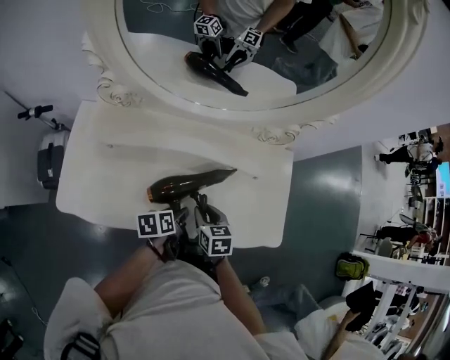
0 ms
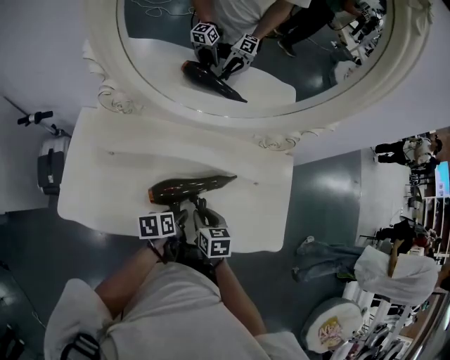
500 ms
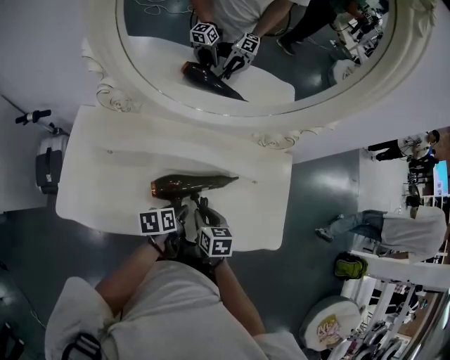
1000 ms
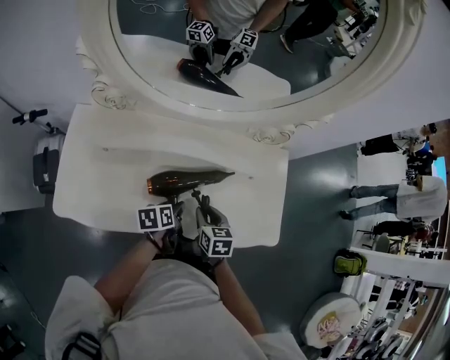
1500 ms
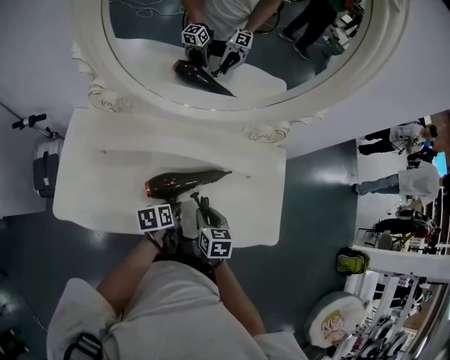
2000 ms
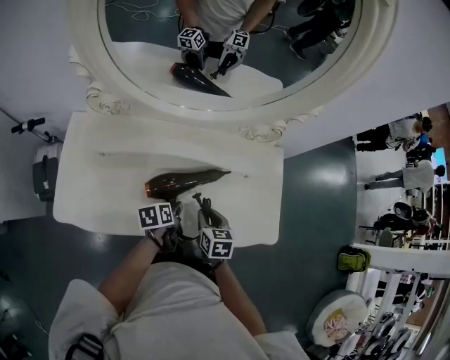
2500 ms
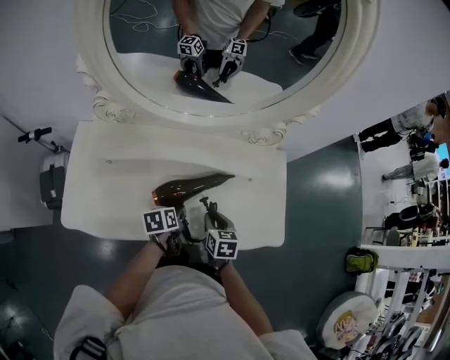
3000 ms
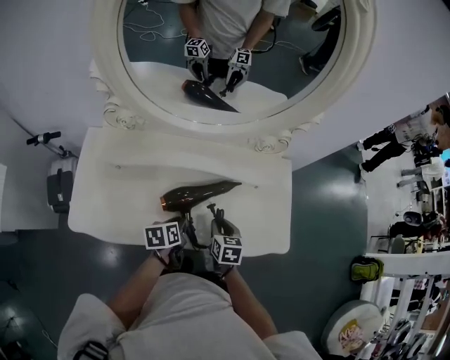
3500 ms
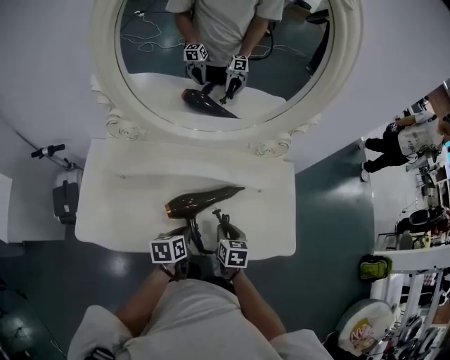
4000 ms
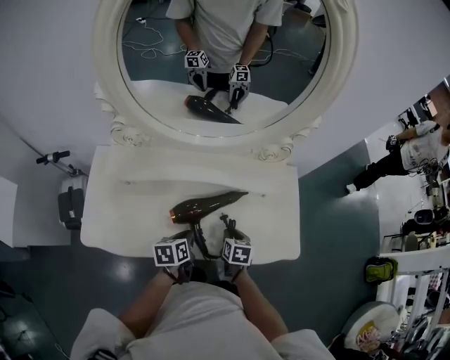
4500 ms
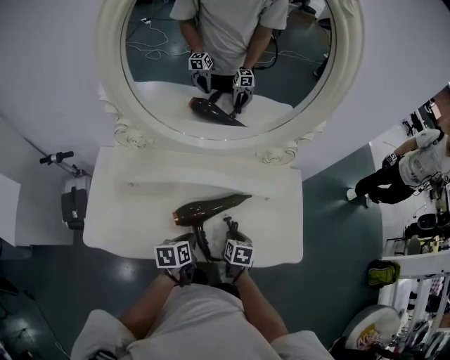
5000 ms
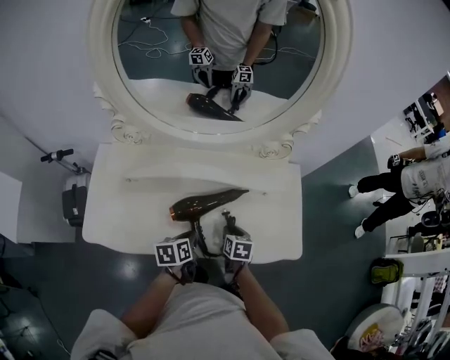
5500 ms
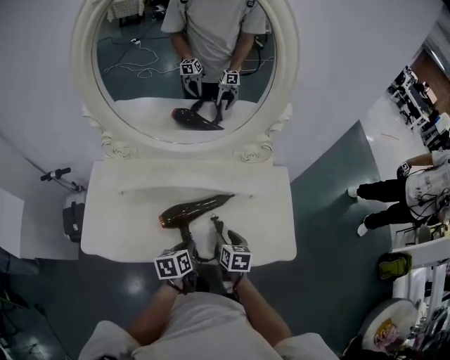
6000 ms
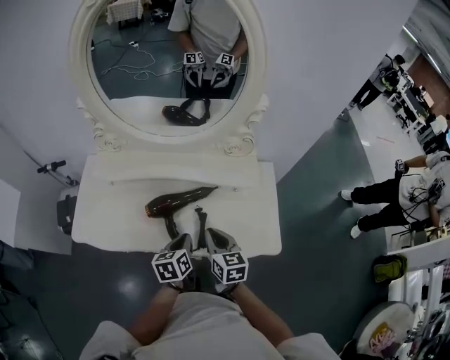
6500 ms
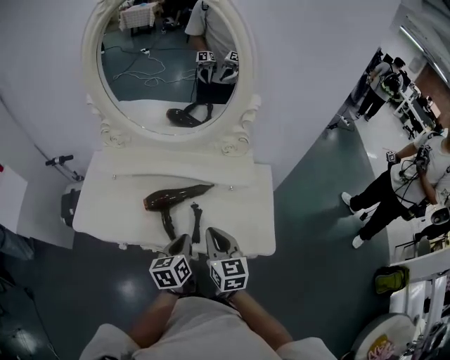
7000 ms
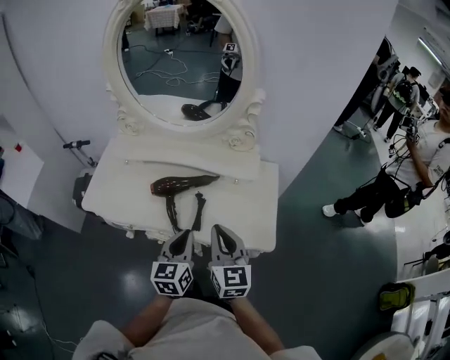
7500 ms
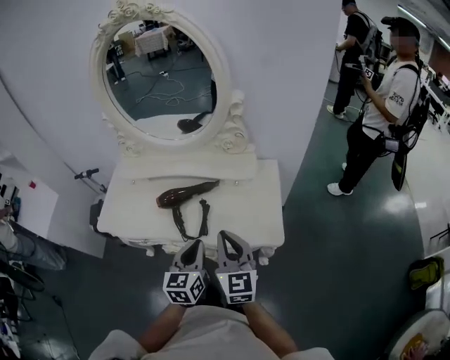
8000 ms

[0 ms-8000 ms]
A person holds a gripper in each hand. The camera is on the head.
0 ms to 2000 ms: The grippers make only small movements.
2000 ms to 4000 ms: The left gripper changes place by approximately 5 cm, and closes up.
4000 ms to 6000 ms: The left gripper changes place by roughly 5 cm.
6000 ms to 8000 ms: The right gripper is displaced upward and backward by some 30 cm, points its fingers approximately 40 degrees further upward, and closes up. The left gripper shifts about 25 cm upward, backward and to the right, and swivels approximately 40 degrees.

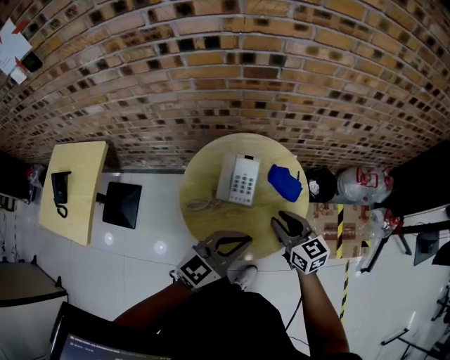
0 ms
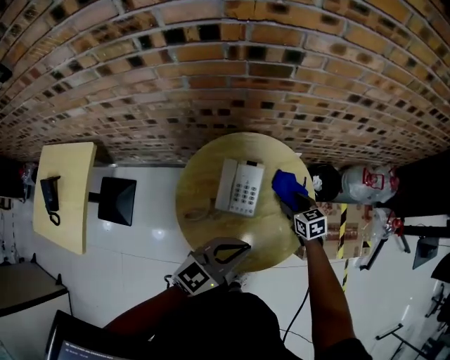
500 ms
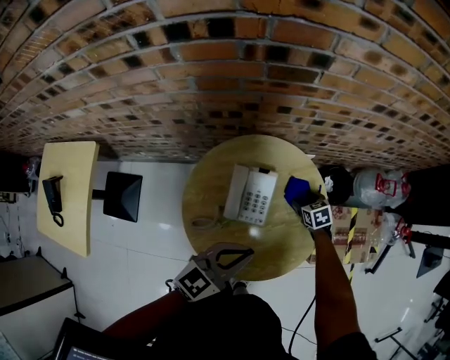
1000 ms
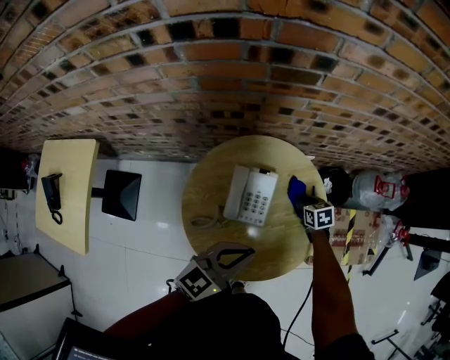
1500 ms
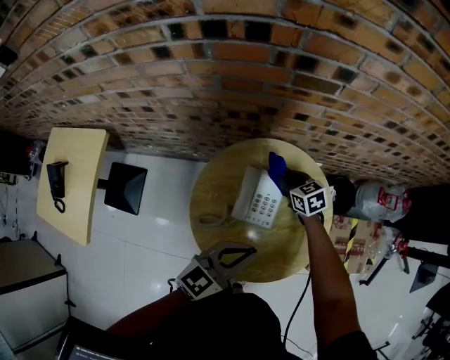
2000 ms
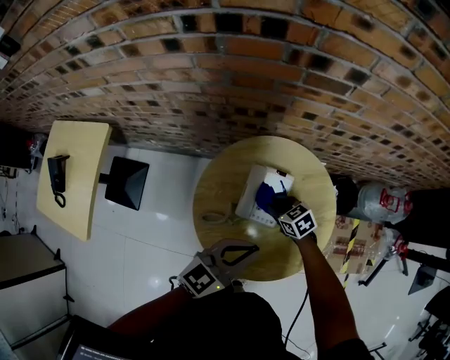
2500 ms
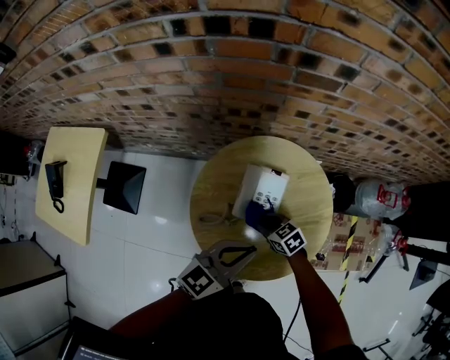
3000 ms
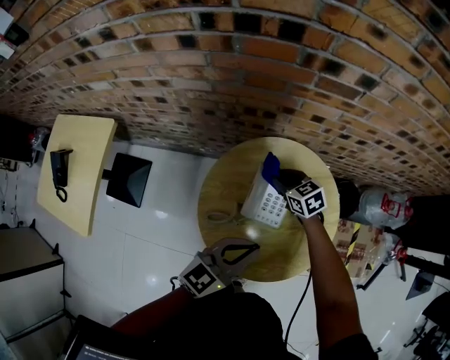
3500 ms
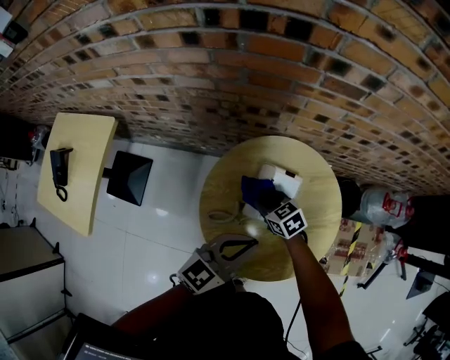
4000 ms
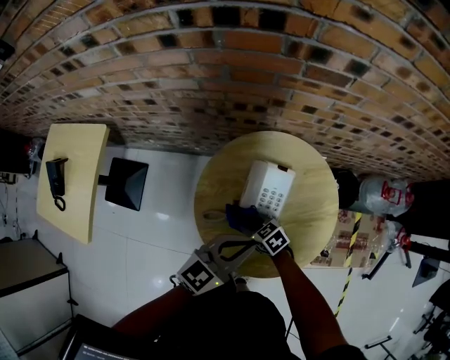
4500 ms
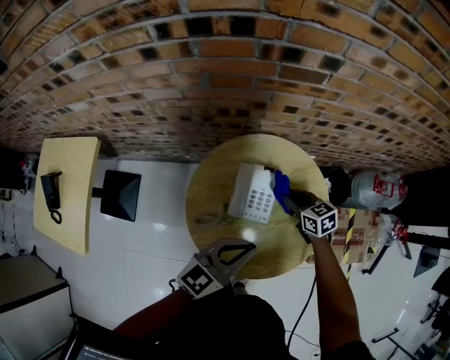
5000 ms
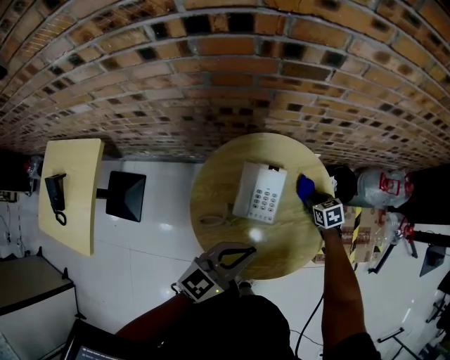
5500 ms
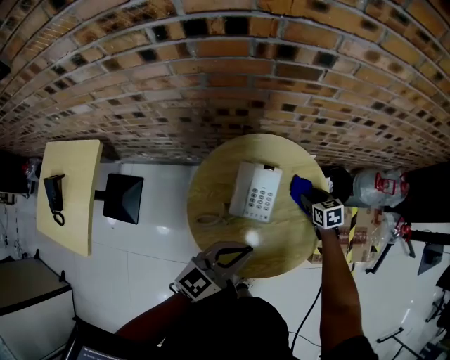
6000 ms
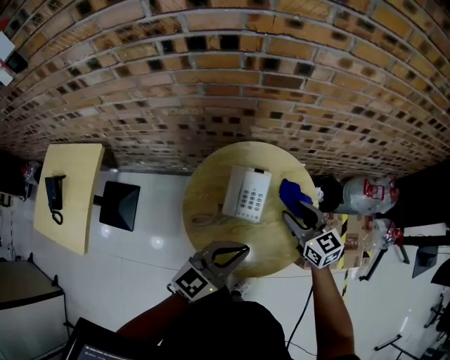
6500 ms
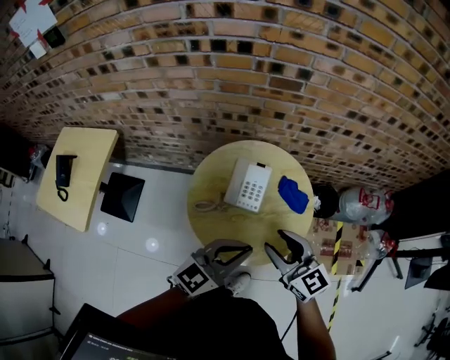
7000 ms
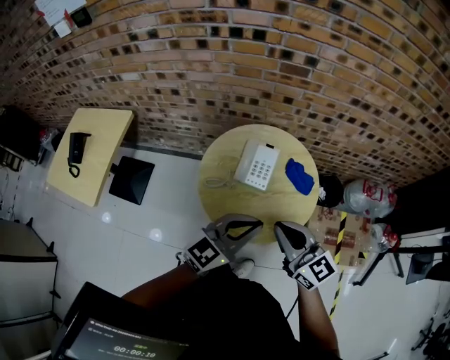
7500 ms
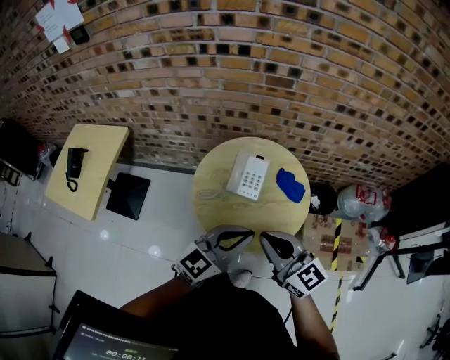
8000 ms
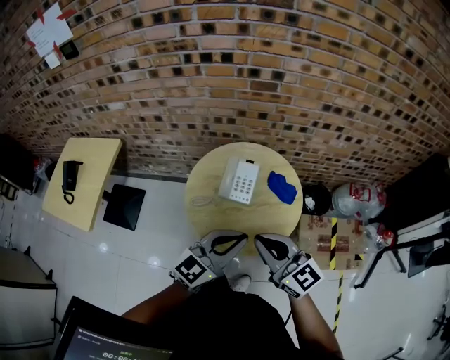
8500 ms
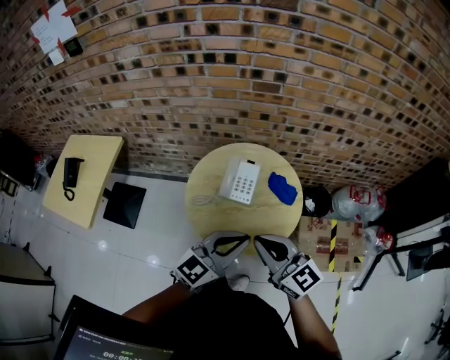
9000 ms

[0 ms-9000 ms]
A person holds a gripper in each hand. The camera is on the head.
0 ms to 2000 ms: The left gripper moves forward, to the left and downward, approximately 15 cm, while the right gripper goes approximately 30 cm forward, downward and to the left, swivels some 20 degrees, and opens and closes again.
2000 ms to 4500 ms: The right gripper swings up and down, about 5 cm each way, with 2 reversals, and swivels some 20 degrees.
4500 ms to 7000 ms: The left gripper changes place by about 15 cm. Meanwhile the right gripper goes up and down, approximately 35 cm each way, reversing 2 times, tips its fingers upward by about 30 degrees, and opens its fingers.
7000 ms to 9000 ms: The right gripper goes approximately 10 cm backward and upward, and closes, while the left gripper shifts about 5 cm backward.

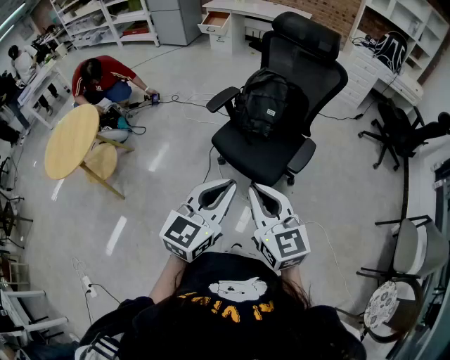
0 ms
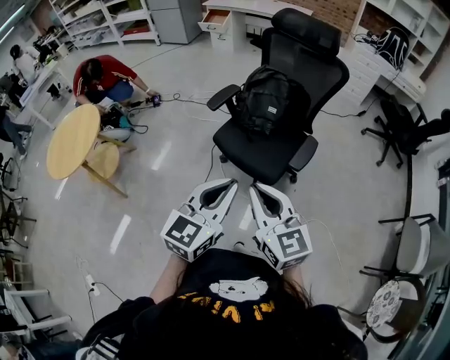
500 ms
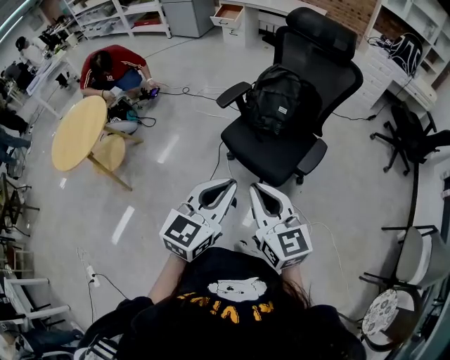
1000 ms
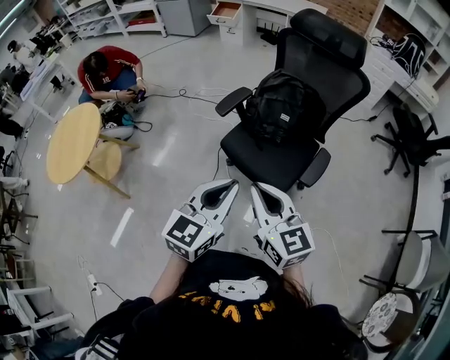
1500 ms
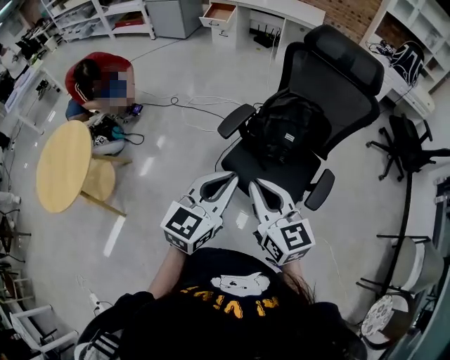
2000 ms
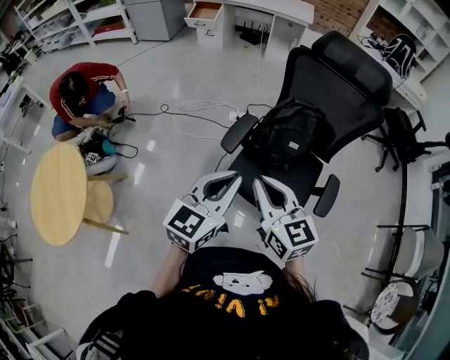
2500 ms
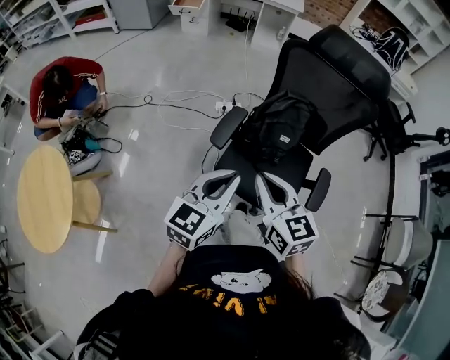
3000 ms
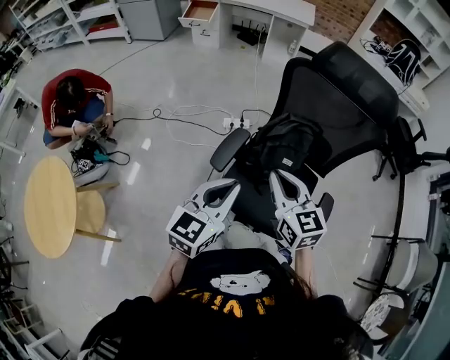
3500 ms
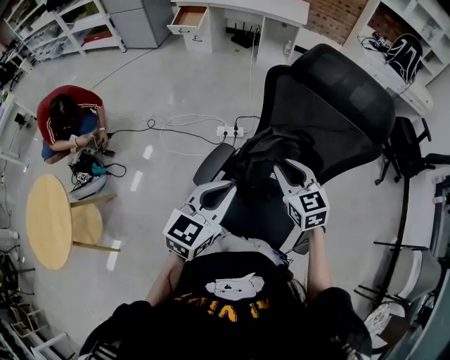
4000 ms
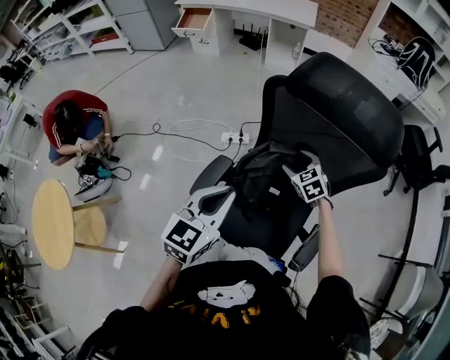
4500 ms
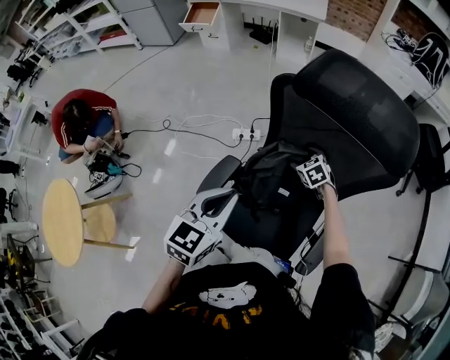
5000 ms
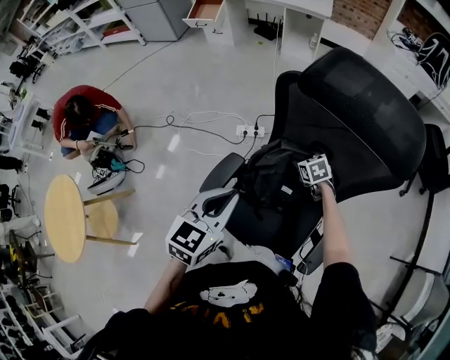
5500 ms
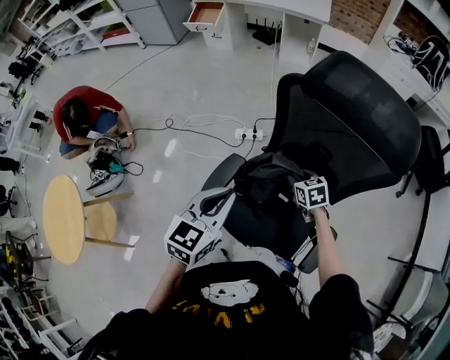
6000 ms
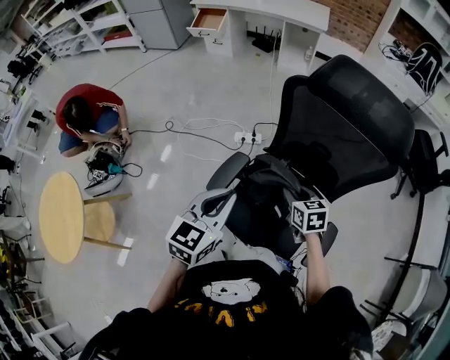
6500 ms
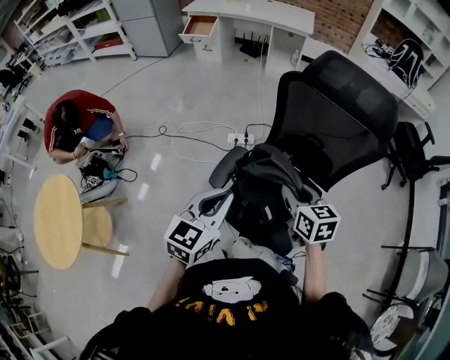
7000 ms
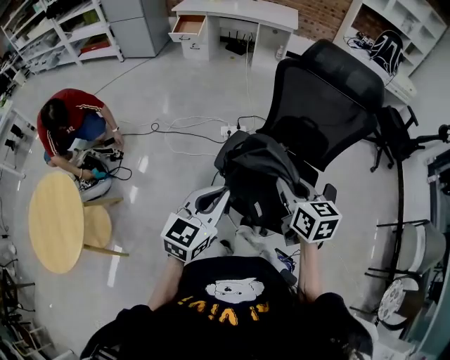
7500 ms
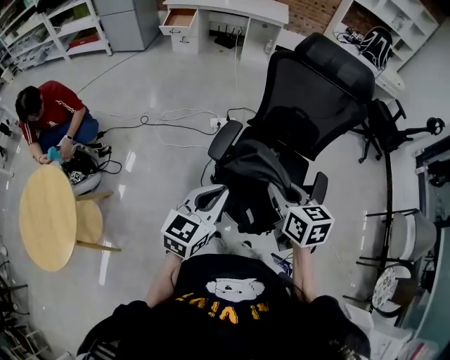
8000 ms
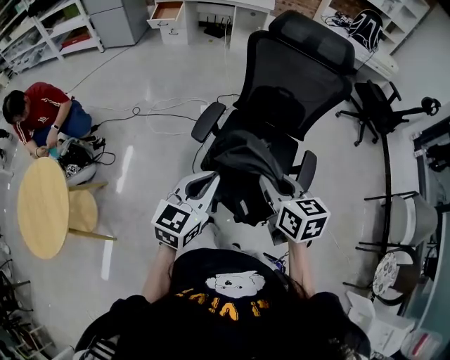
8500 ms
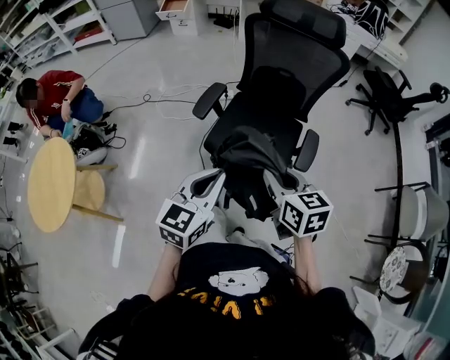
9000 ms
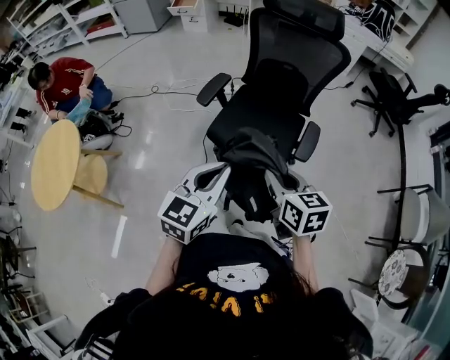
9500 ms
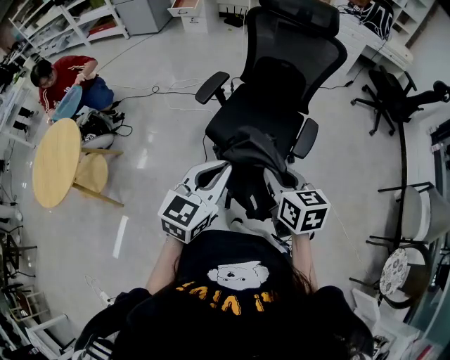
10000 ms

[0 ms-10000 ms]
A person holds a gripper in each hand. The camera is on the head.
0 ms to 2000 ms: The two grippers go roughly 25 cm forward and to the left.
2000 ms to 4000 ms: Both grippers travel together forward, some 30 cm. The right gripper changes its angle by roughly 20 degrees.
4000 ms to 6000 ms: The left gripper is displaced forward by some 5 cm, while the right gripper heads downward and forward, covering about 20 cm, changes its angle by approximately 30 degrees, and opens, then closes once more.
6000 ms to 8000 ms: The right gripper heads backward, upward and to the left, covering roughly 40 cm, and swivels approximately 30 degrees; the left gripper goes roughly 25 cm backward and to the left.
8000 ms to 10000 ms: Both grippers travel together backward and to the right, about 25 cm.
